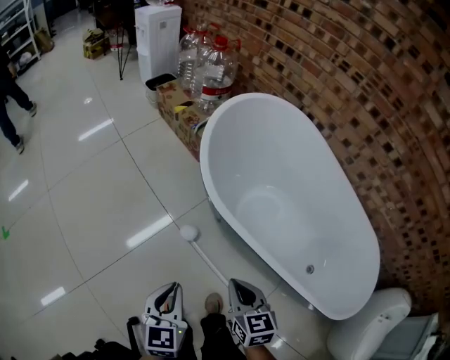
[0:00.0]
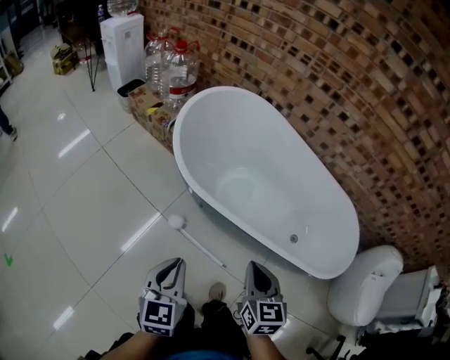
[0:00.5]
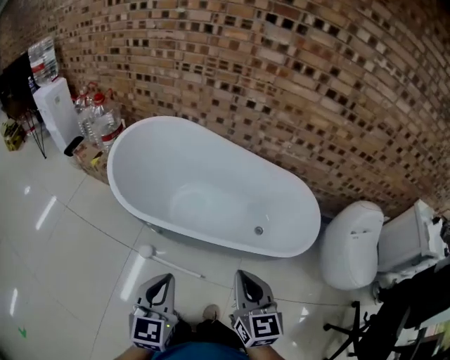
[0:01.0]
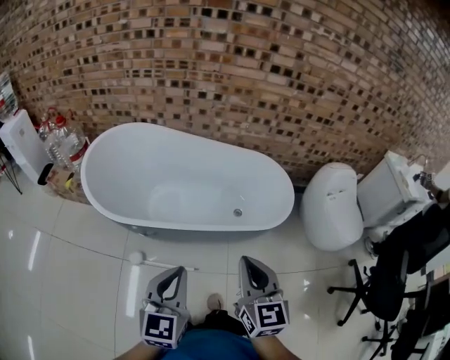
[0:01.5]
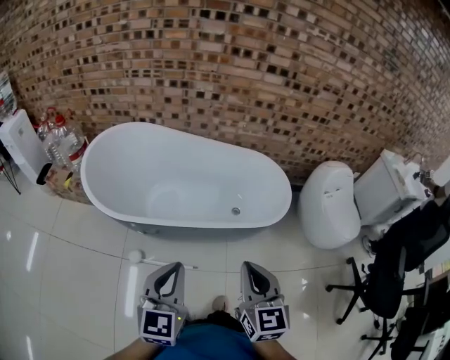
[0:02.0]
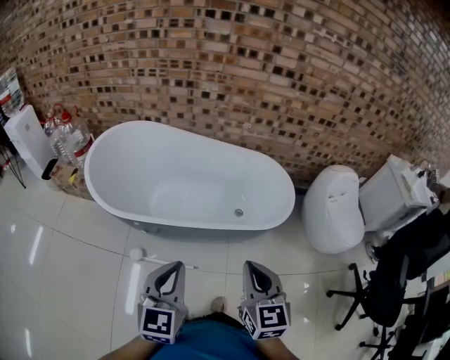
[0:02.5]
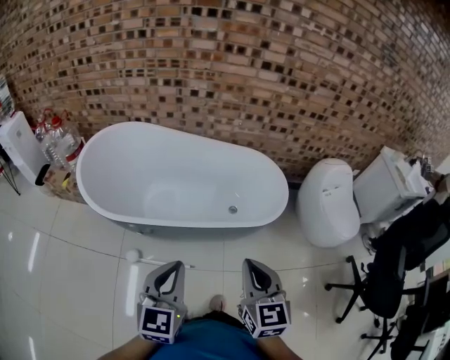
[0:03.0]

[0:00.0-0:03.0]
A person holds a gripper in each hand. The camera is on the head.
0:00.0 to 0:01.5: The left gripper goes some 30 cm upward, and changes its angle by some 50 degrees; the right gripper changes place by some 50 cm, and changes its angle by approximately 50 degrees.
0:01.5 to 0:03.0: The right gripper ends up some 5 cm from where it was.

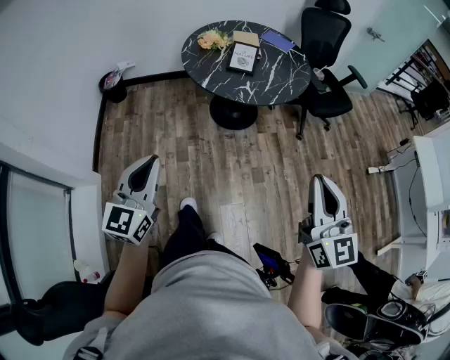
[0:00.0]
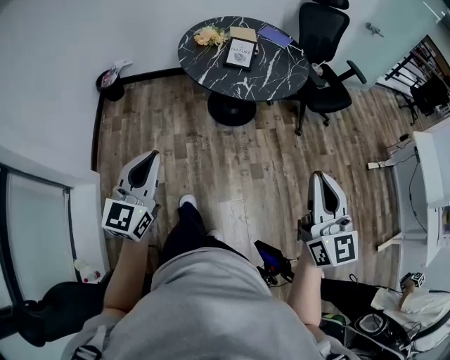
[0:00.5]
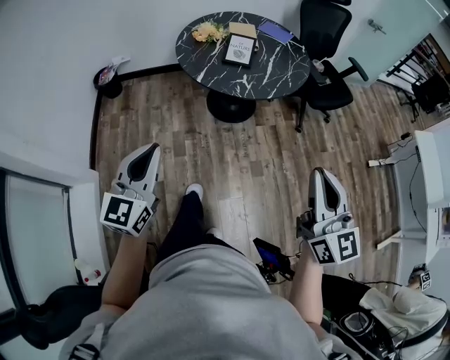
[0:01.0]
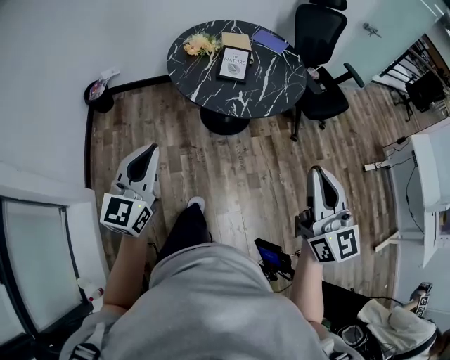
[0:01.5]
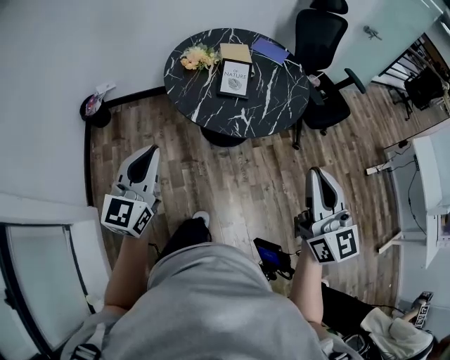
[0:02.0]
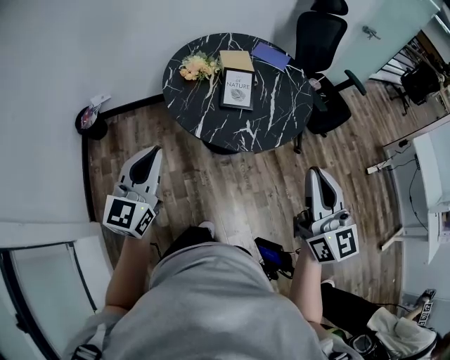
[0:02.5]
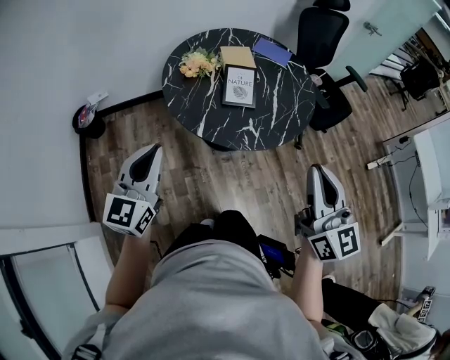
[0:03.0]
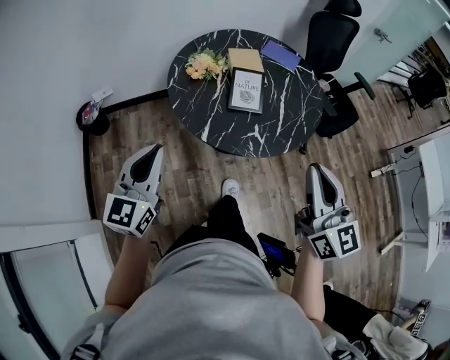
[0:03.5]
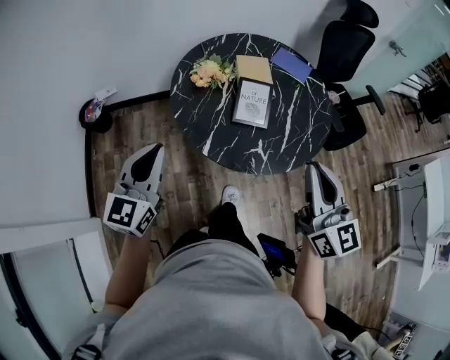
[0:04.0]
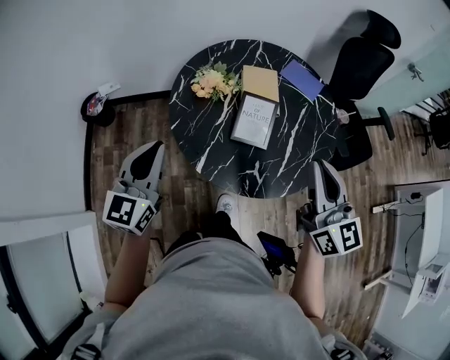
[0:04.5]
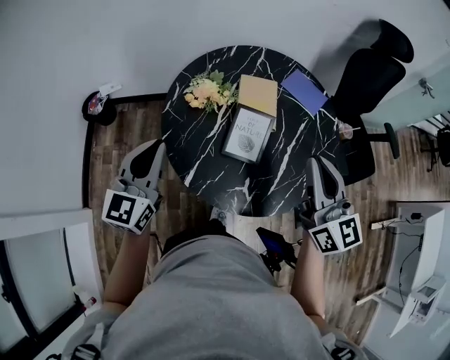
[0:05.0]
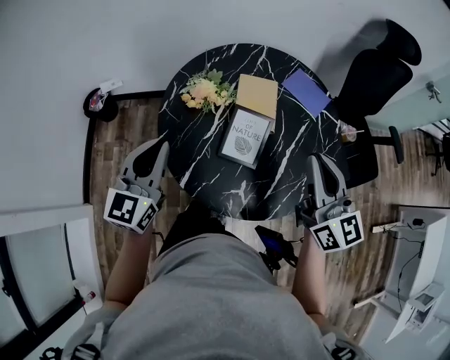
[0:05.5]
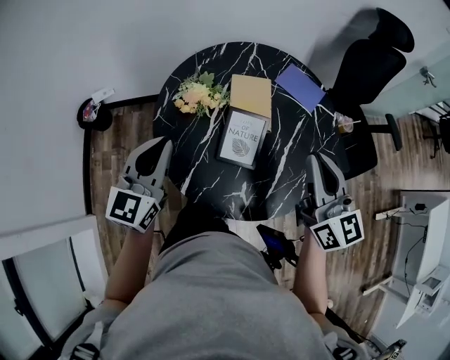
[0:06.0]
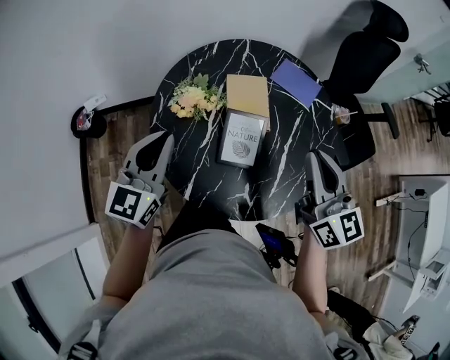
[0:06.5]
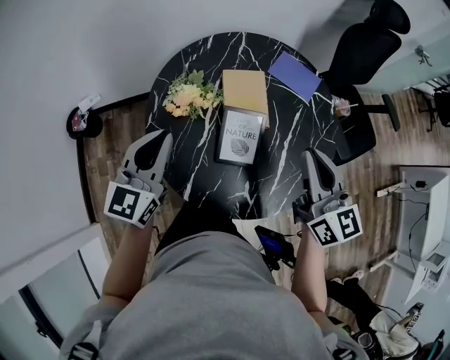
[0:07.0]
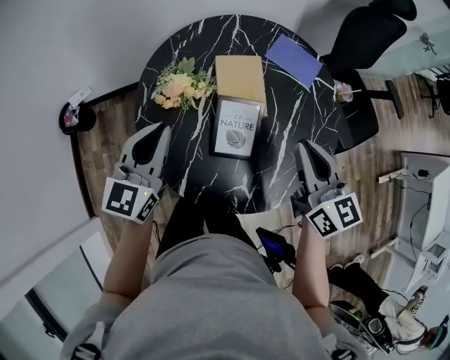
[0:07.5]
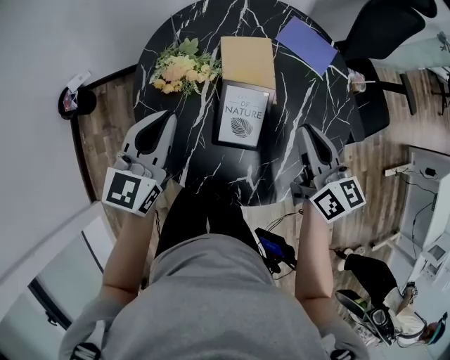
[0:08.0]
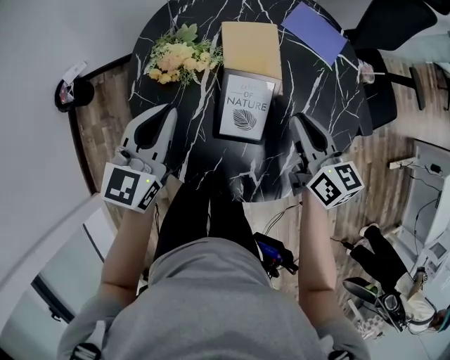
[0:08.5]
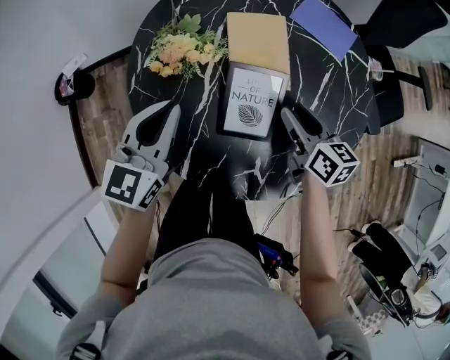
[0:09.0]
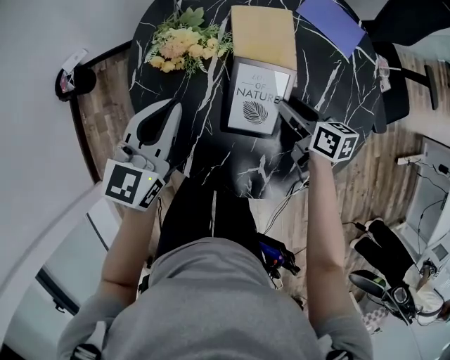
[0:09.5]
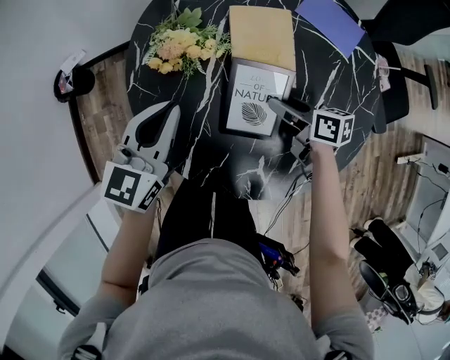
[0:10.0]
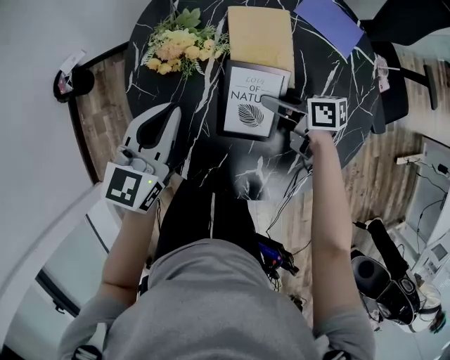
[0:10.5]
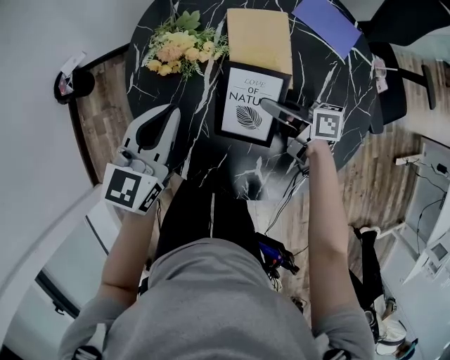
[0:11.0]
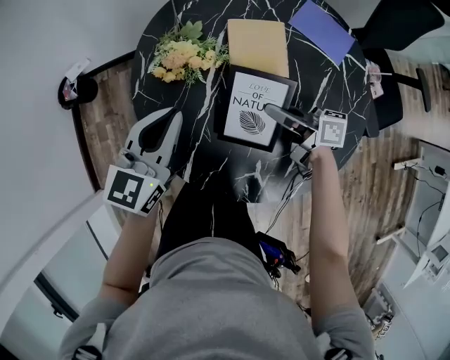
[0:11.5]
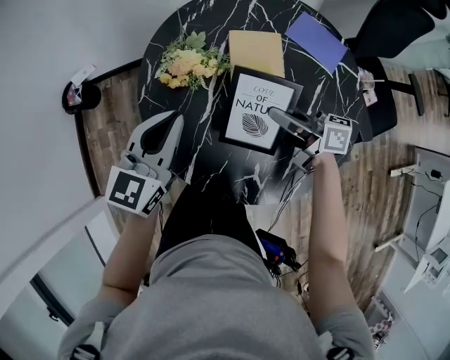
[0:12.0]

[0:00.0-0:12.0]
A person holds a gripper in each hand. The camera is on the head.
0:00.0 to 0:02.0: Both grippers travel together forward, roughly 20 cm.
0:02.0 to 0:04.0: Both grippers move forward, about 20 cm.
0:04.0 to 0:06.0: The two grippers go approximately 25 cm forward and to the right.
0:06.0 to 0:08.0: The right gripper goes approximately 15 cm downward and forward, and changes its angle by approximately 20 degrees. Meanwhile the left gripper moves forward and downward, some 10 cm.
0:08.0 to 0:10.0: The left gripper shifts about 5 cm downward. The right gripper heads downward, covering approximately 20 cm, turns by about 40 degrees, and opens its fingers.
0:10.0 to 0:12.0: The left gripper is displaced upward by approximately 5 cm, while the right gripper travels upward by approximately 10 cm, changes its angle by some 30 degrees, and closes up.

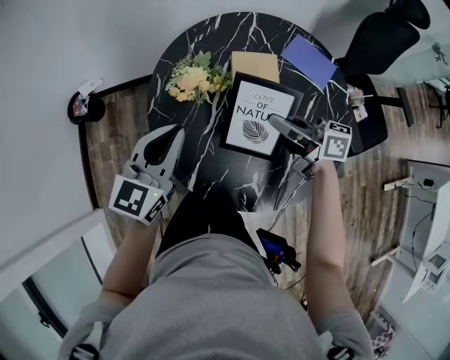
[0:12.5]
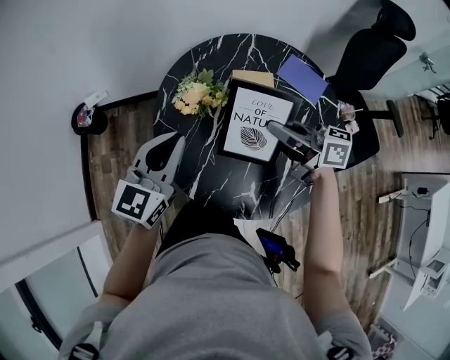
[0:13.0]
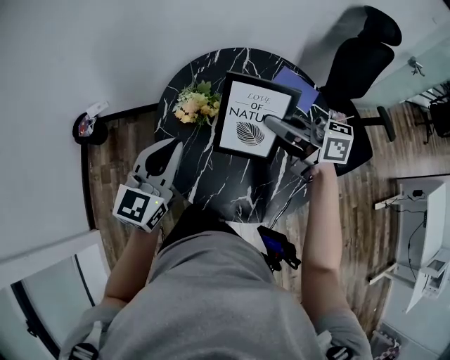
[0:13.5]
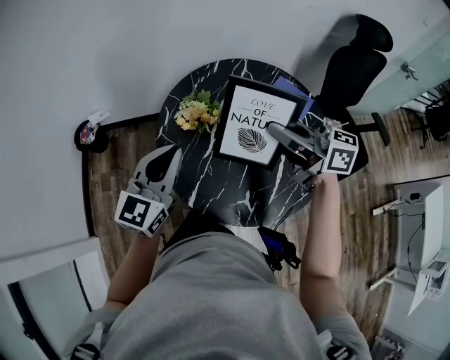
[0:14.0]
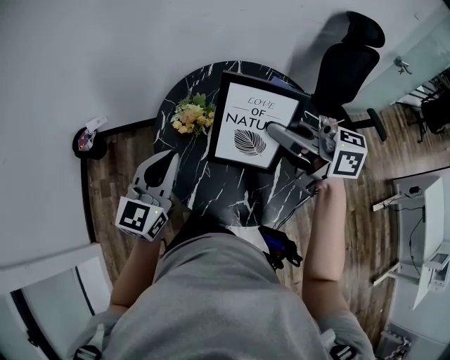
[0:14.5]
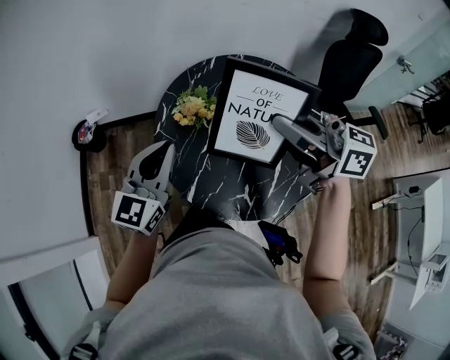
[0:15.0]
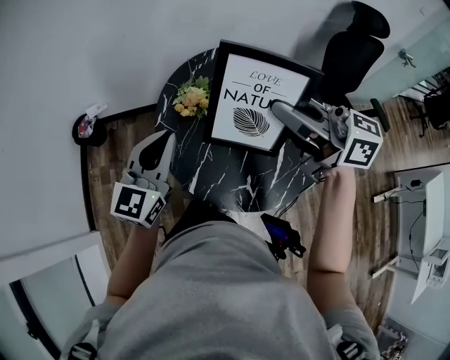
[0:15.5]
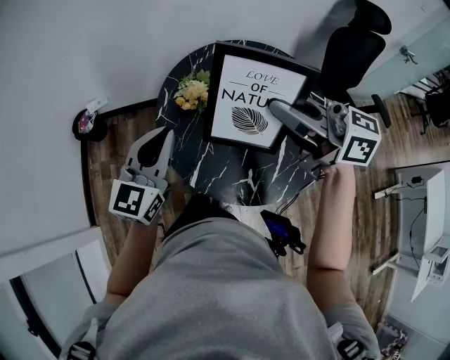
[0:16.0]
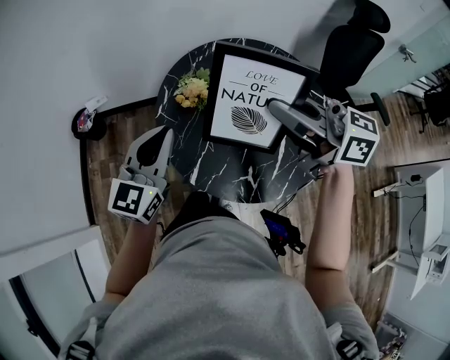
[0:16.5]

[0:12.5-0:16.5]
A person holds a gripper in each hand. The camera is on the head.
0:12.5 to 0:14.5: The left gripper shifts approximately 5 cm upward. Meanwhile the right gripper heads upward, covering about 20 cm, and rotates some 20 degrees.
0:14.5 to 0:16.5: The grippers make only small movements.

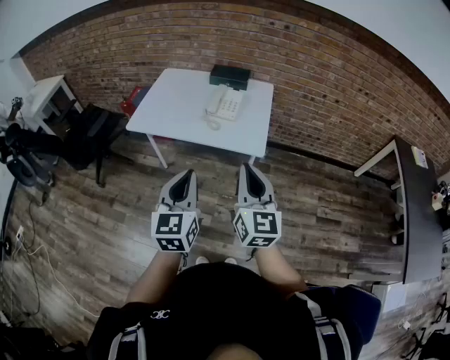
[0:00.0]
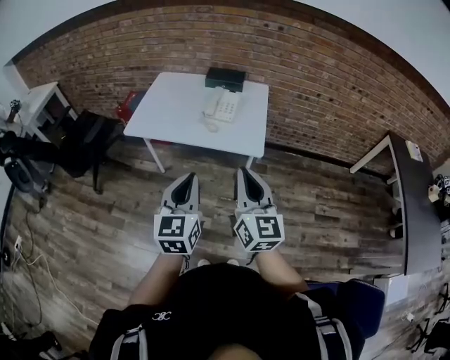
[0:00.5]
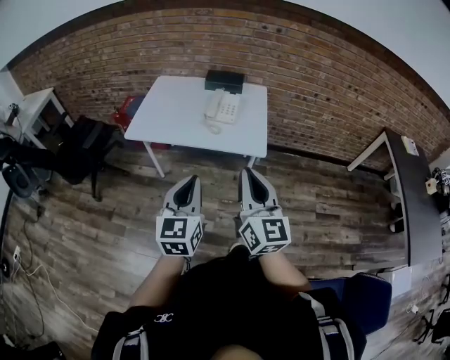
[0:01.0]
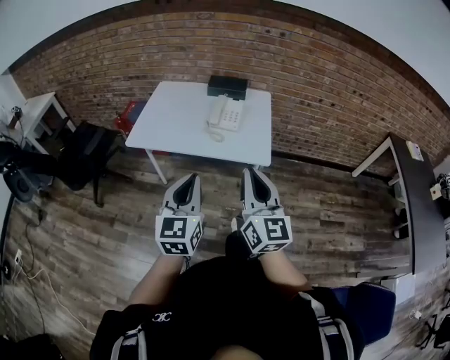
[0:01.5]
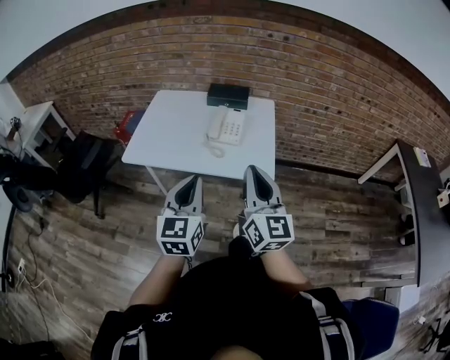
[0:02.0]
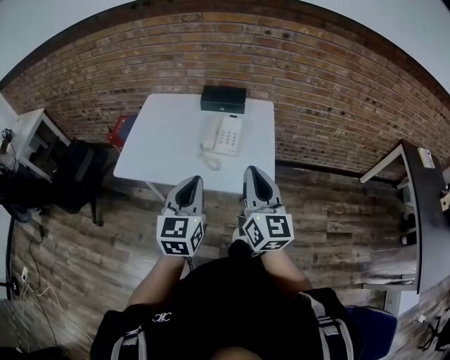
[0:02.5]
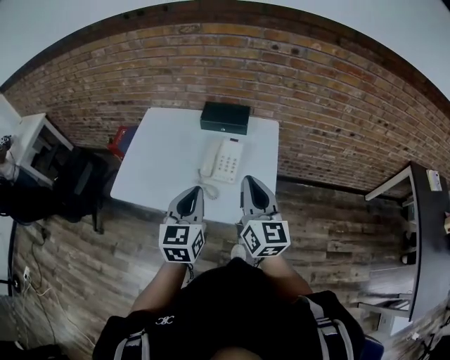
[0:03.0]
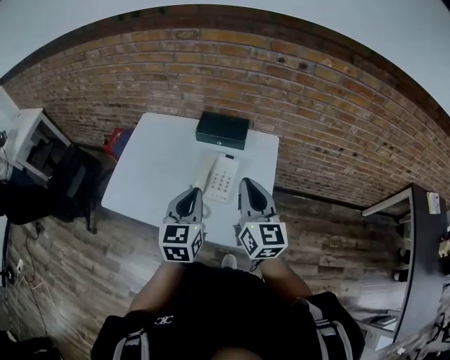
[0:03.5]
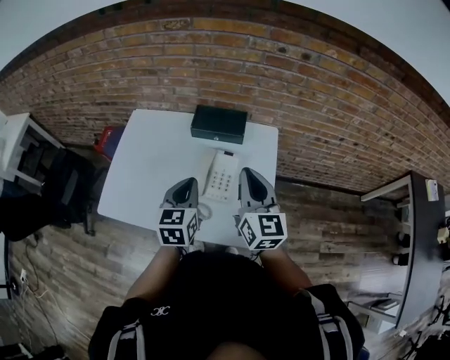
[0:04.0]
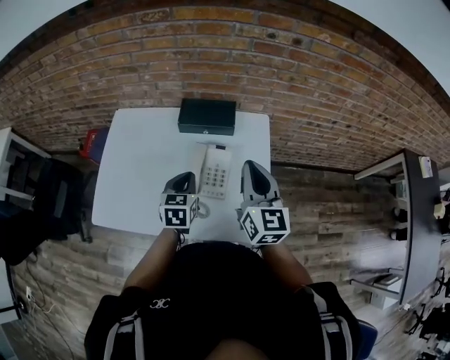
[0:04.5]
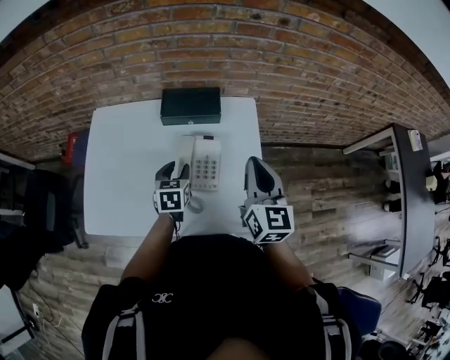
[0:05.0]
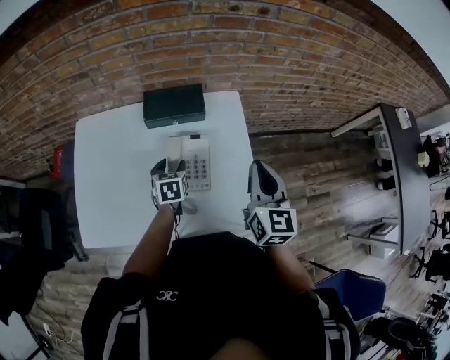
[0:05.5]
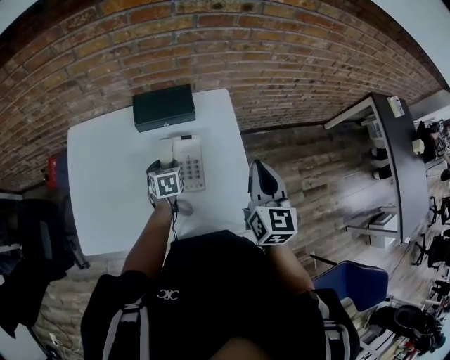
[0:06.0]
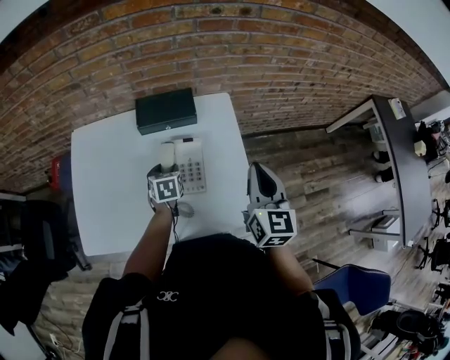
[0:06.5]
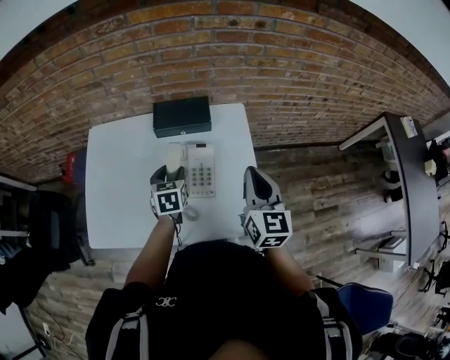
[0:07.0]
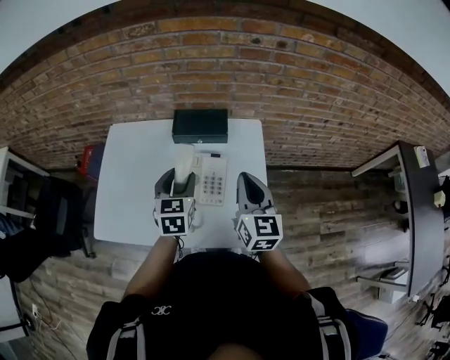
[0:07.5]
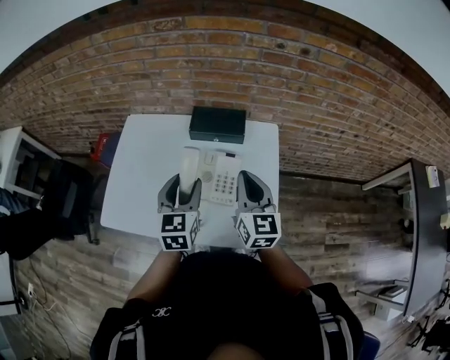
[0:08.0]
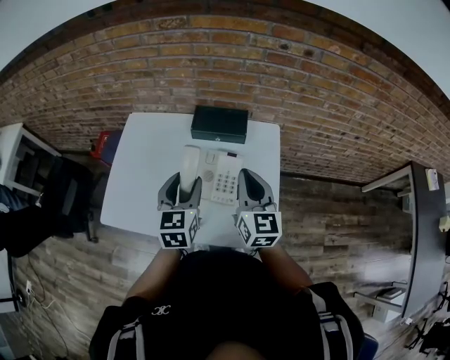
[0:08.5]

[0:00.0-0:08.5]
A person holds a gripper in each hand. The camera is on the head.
0:00.0 to 0:02.0: The grippers both shift forward by some 10 cm.
0:02.0 to 0:04.0: Both grippers travel together forward, roughly 40 cm.
0:04.0 to 0:06.5: The left gripper goes approximately 25 cm downward and forward, rotates approximately 30 degrees, and opens. The right gripper is displaced to the right by some 10 cm, and turns by approximately 30 degrees.
0:06.5 to 0:08.5: The right gripper heads to the left, covering approximately 10 cm, and turns by some 20 degrees, while the left gripper shifts approximately 25 cm upward and backward, and turns by approximately 30 degrees.
